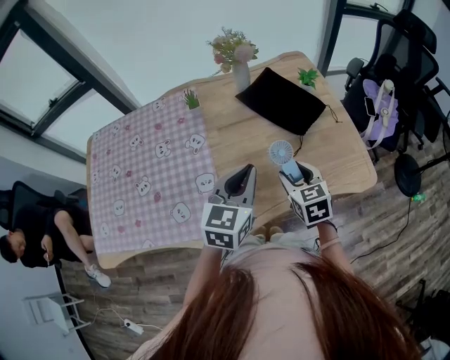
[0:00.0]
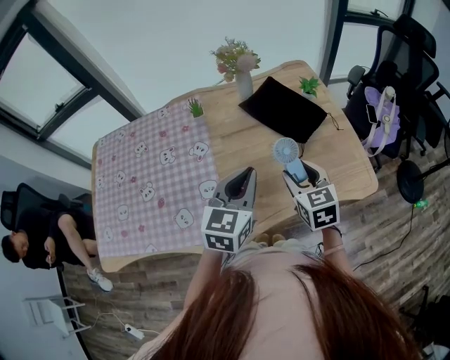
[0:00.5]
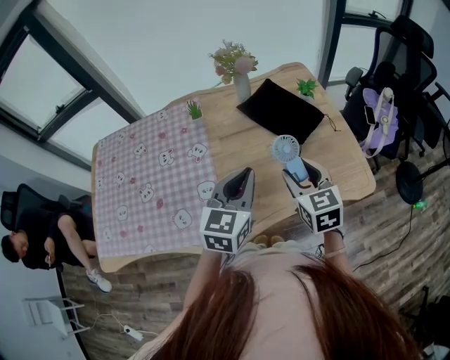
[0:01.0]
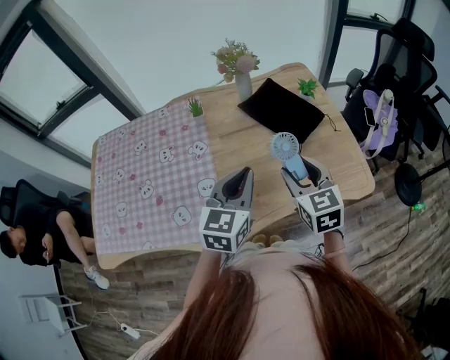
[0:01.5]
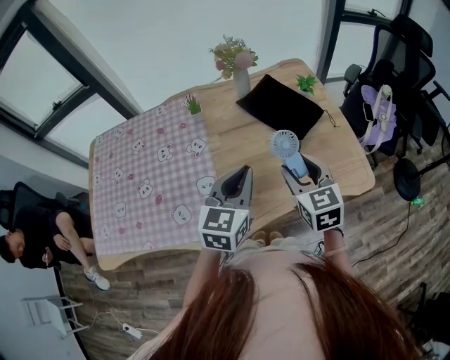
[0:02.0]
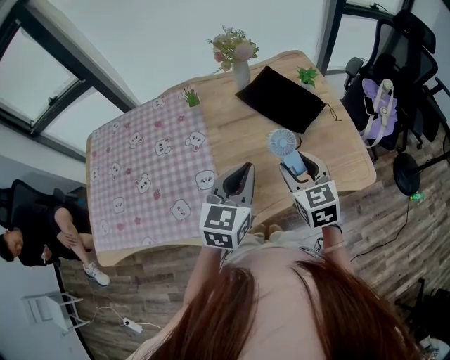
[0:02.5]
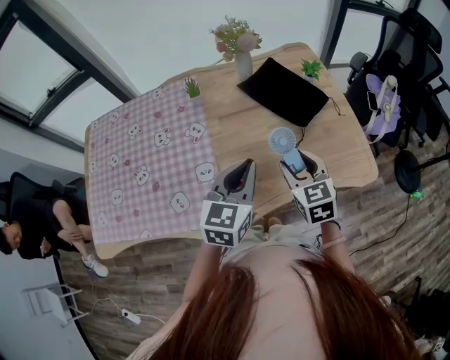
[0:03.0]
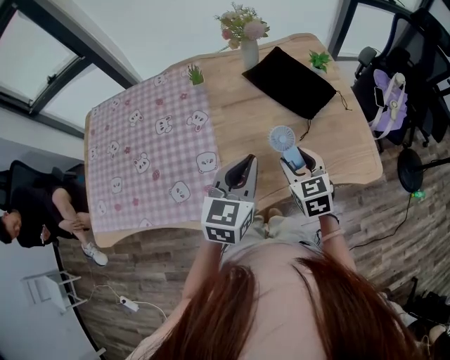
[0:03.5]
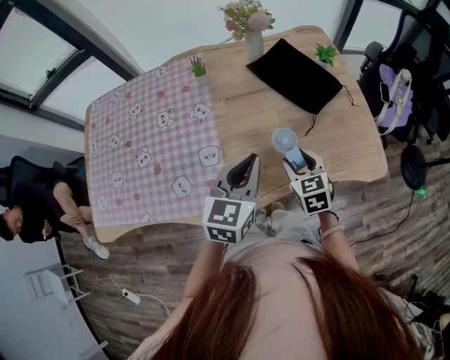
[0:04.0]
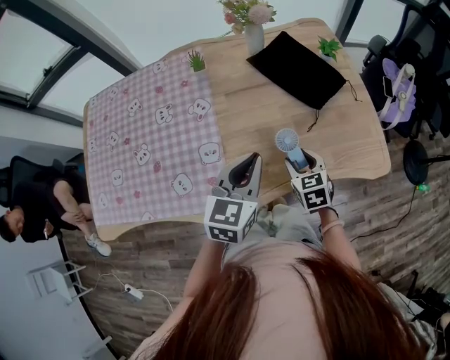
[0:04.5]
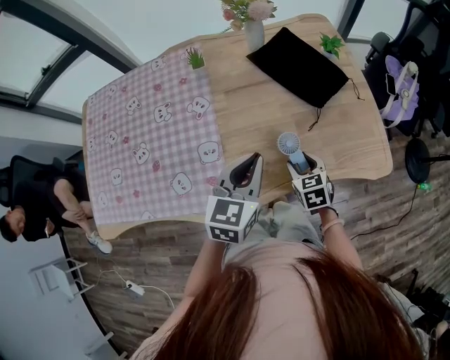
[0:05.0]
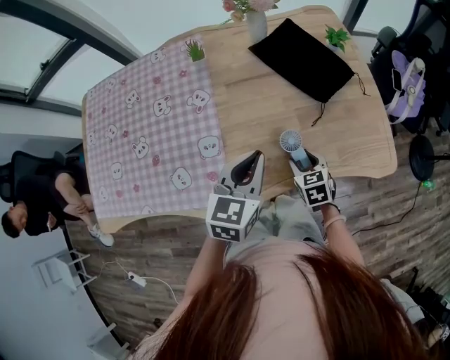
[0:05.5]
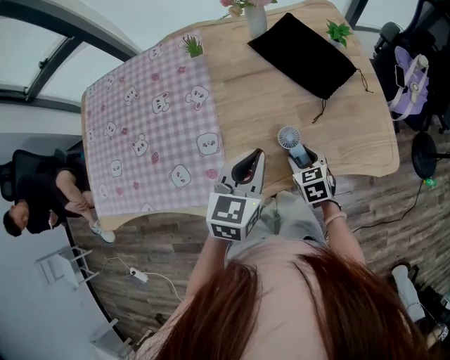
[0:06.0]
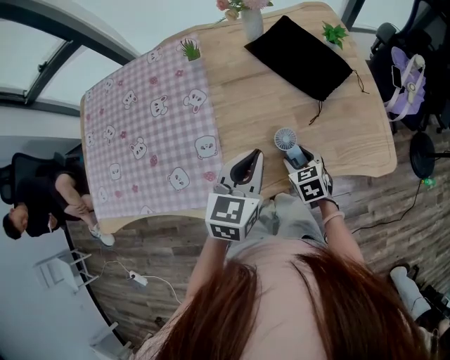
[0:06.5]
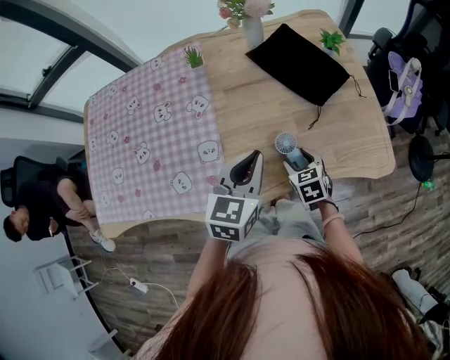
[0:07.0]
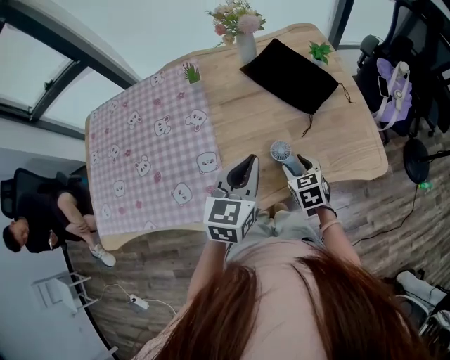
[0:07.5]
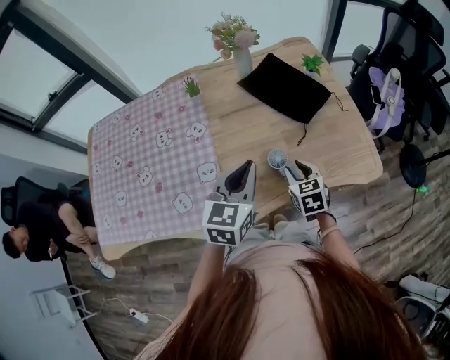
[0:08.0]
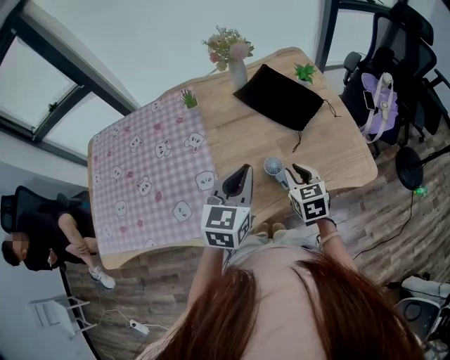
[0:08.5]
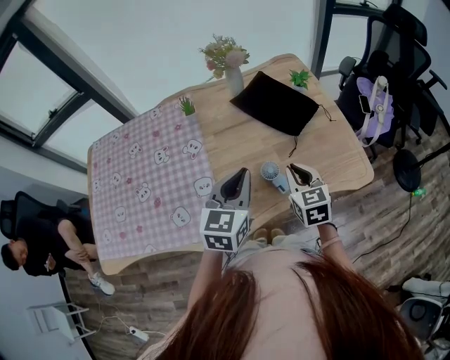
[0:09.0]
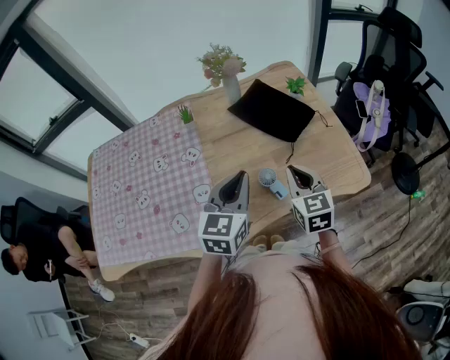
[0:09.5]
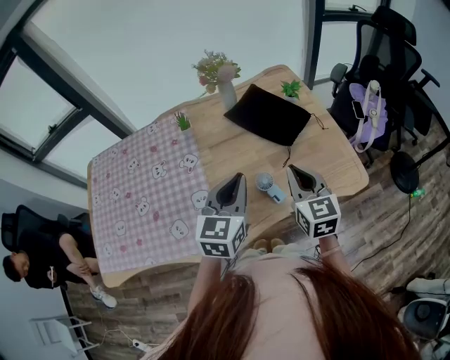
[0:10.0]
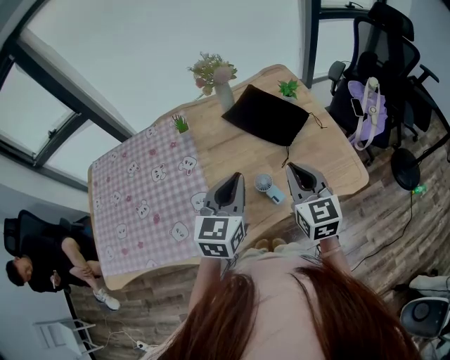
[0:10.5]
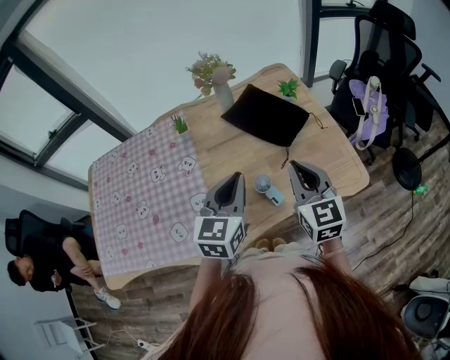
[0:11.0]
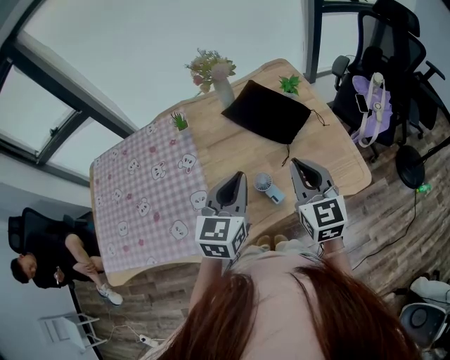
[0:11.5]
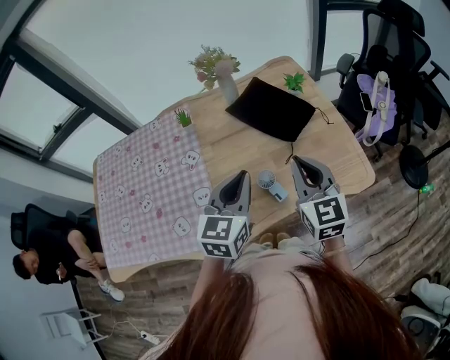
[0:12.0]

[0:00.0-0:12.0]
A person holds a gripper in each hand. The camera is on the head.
0:00.0 to 0:02.0: The right gripper heads upward, covering roughly 10 cm.
0:02.0 to 0:04.0: The right gripper is displaced downward by roughly 15 cm.
0:04.0 to 0:06.0: The right gripper moves downward, roughly 10 cm. The left gripper changes place by roughly 5 cm.
0:06.0 to 0:08.0: The left gripper goes roughly 5 cm upward; the right gripper is displaced upward by about 10 cm.
0:08.0 to 0:10.0: The left gripper changes place by some 5 cm. Meanwhile the right gripper goes about 20 cm upward, changes its angle by some 30 degrees, and closes.
0:10.0 to 0:12.0: The grippers make only small movements.

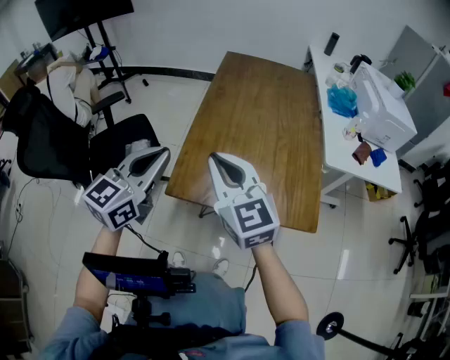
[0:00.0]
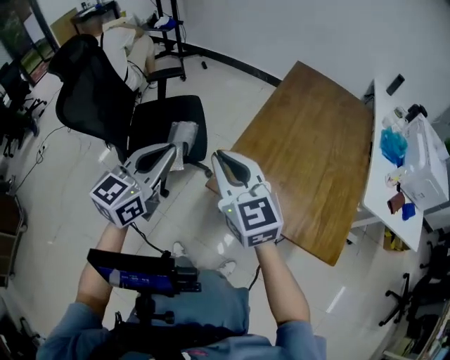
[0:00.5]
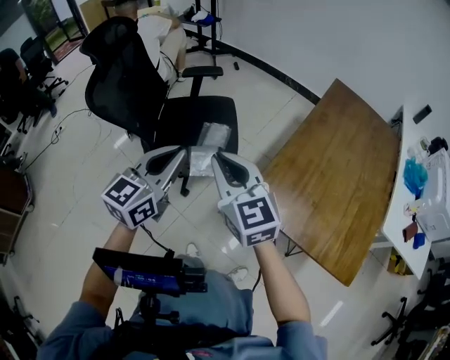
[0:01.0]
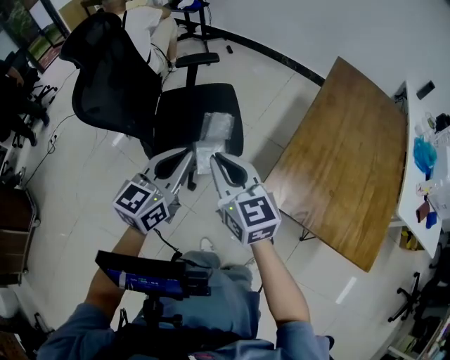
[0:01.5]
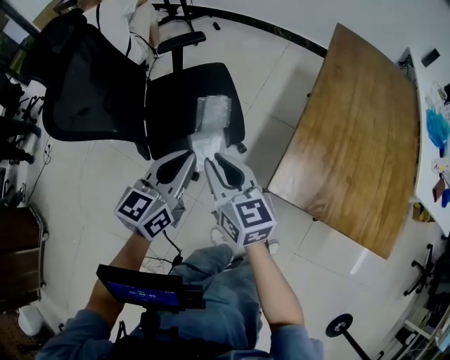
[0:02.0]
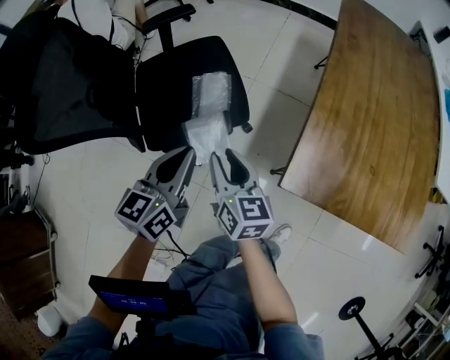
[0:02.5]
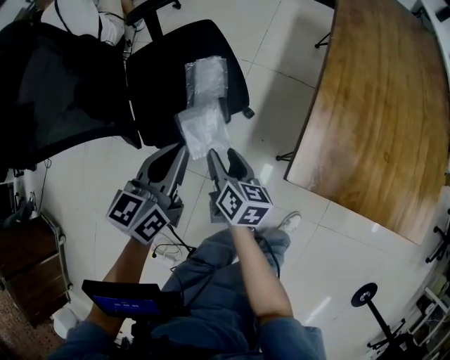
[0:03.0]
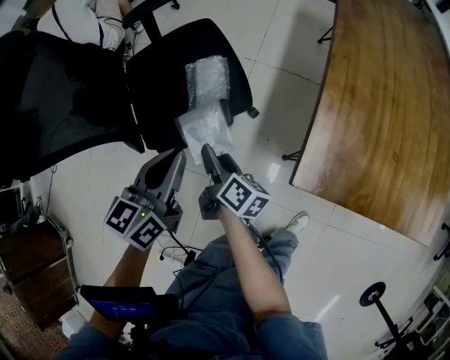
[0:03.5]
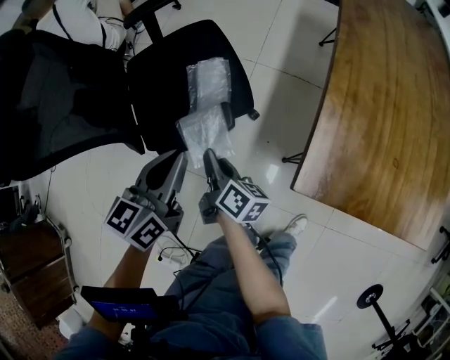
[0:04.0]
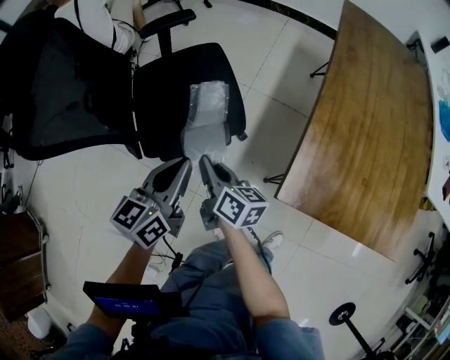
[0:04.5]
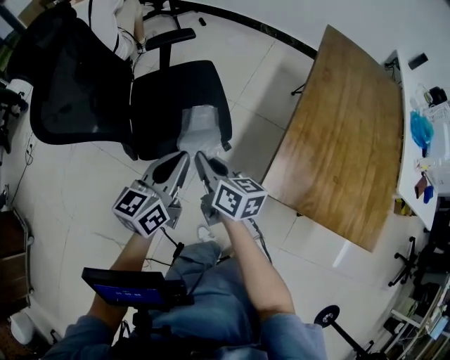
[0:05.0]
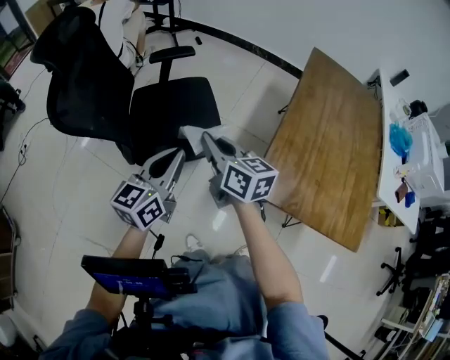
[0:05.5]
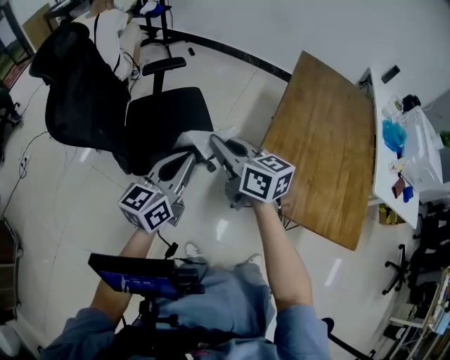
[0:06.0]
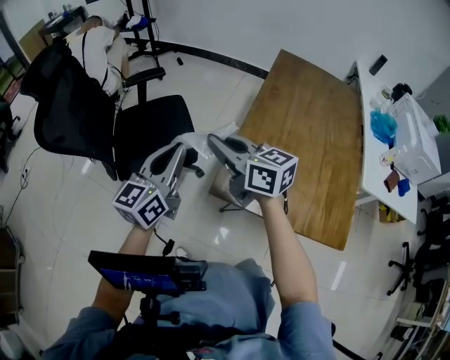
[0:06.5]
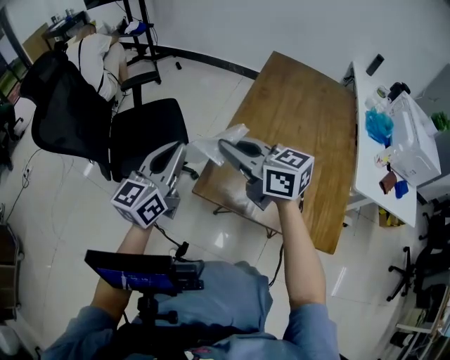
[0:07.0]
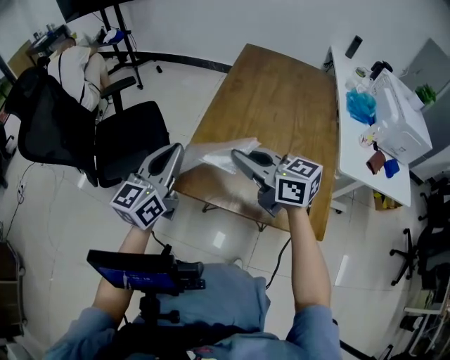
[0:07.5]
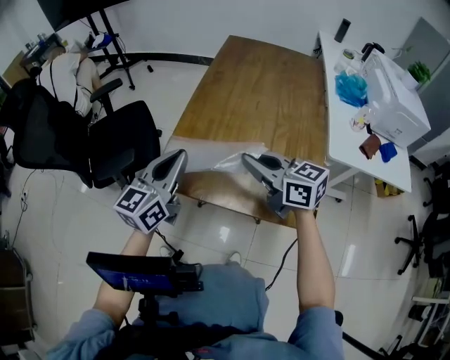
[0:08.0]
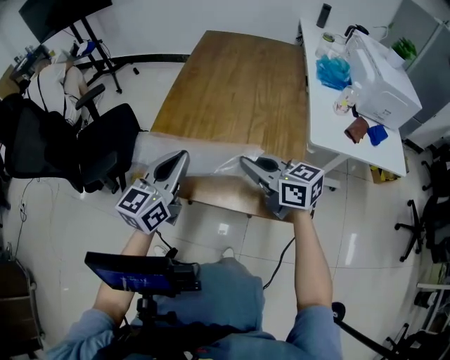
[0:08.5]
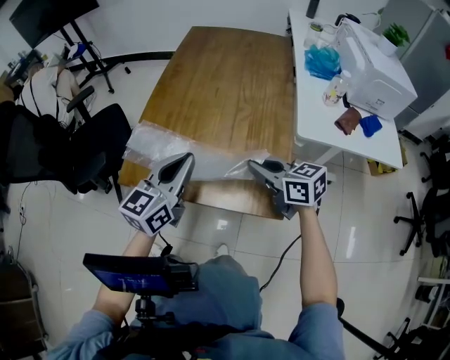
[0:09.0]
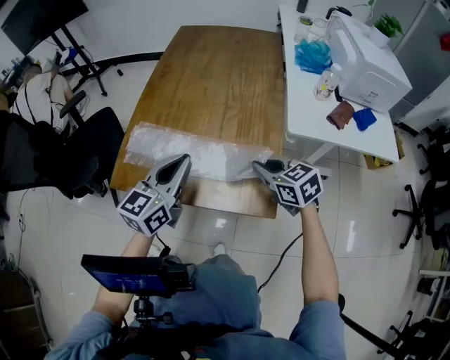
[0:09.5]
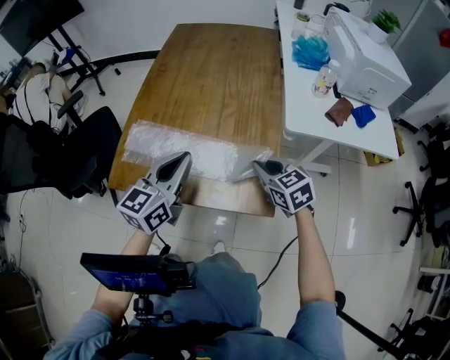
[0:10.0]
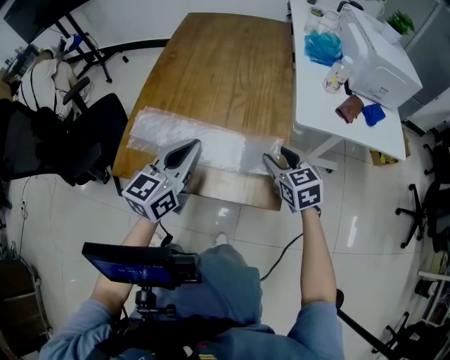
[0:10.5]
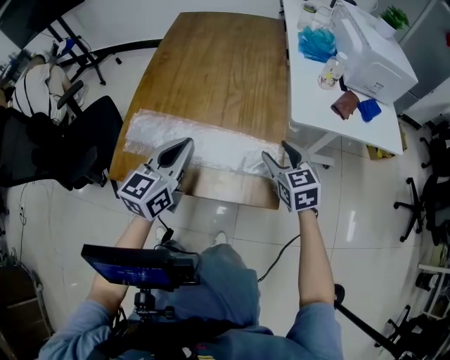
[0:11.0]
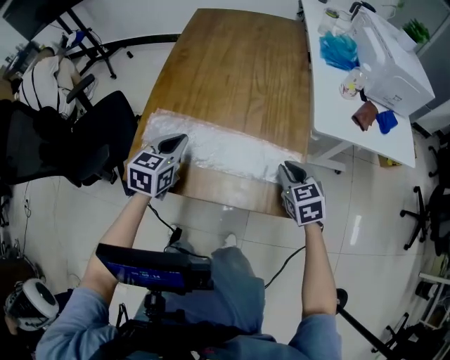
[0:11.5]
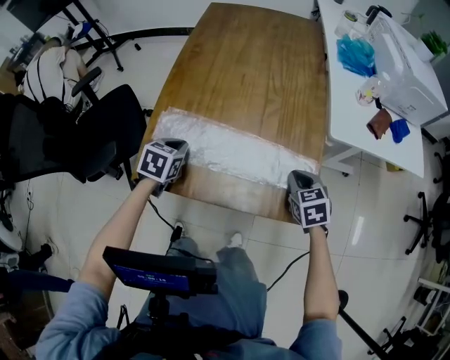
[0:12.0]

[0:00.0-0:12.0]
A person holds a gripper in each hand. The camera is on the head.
0:00.0 to 0:02.0: The grippers both shift to the left and downward by approximately 35 cm. The right gripper changes its angle by roughly 20 degrees.
0:02.0 to 0:04.0: The left gripper is displaced downward by approximately 10 cm. The right gripper moves downward, roughly 20 cm, twists some 50 degrees clockwise, seen from behind, and opens, then closes again.
0:04.0 to 0:06.0: The left gripper moves upward, roughly 15 cm. The right gripper travels upward by roughly 30 cm, and rotates around the line of its fingers by roughly 50 degrees, counterclockwise from behind.
0:06.0 to 0:08.0: The left gripper shifts approximately 30 cm to the right. The right gripper is displaced to the right and backward by some 40 cm.
0:08.0 to 0:10.0: The right gripper travels to the right and downward by roughly 25 cm, and turns by approximately 30 degrees, while the left gripper travels to the right by some 20 cm.
0:10.0 to 0:12.0: The right gripper shifts approximately 5 cm downward, turns by some 20 degrees, and opens, then closes once more. The left gripper is displaced to the left, downward and forward by about 25 cm, and angles its fingers downward, by approximately 50 degrees.

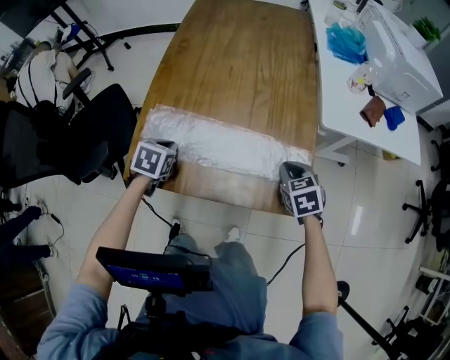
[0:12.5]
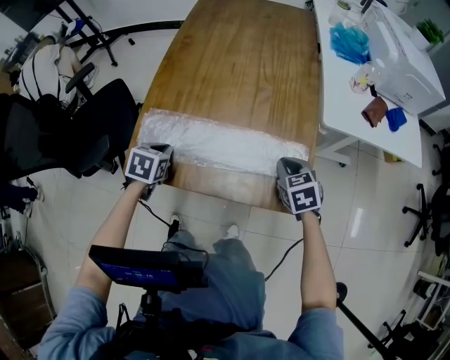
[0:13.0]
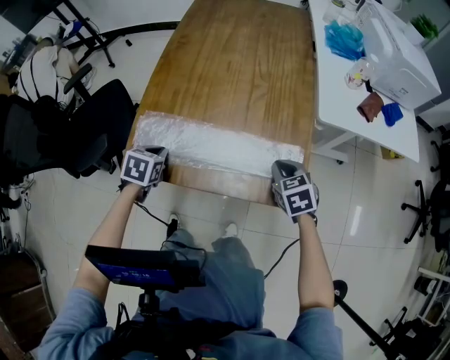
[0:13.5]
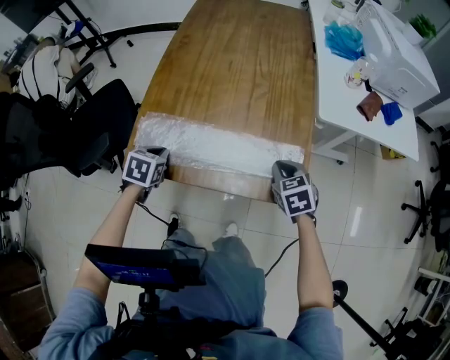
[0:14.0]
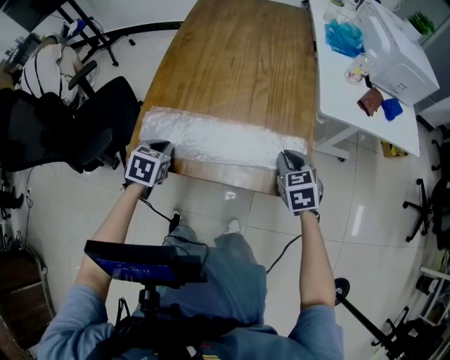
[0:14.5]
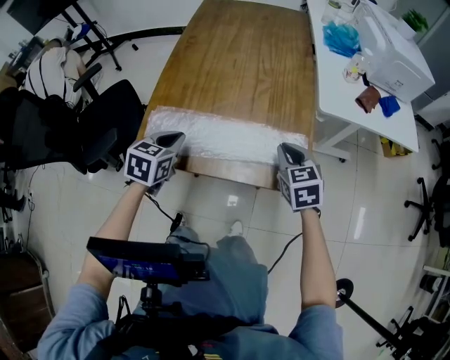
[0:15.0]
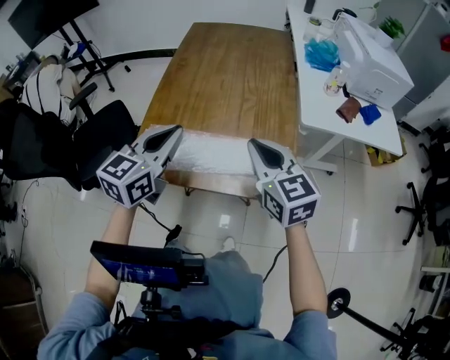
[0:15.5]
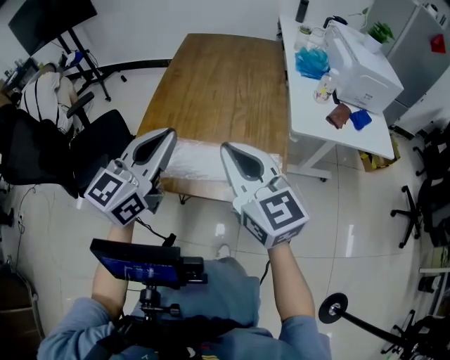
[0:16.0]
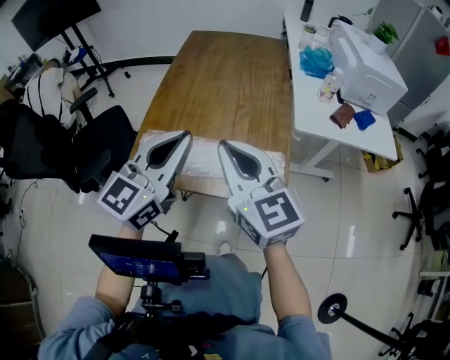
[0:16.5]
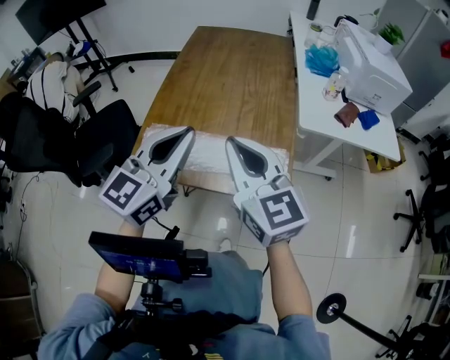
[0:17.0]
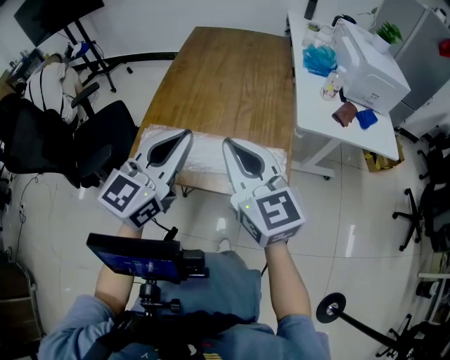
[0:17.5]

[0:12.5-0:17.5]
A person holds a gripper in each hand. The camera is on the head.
0:12.5 to 0:15.0: The left gripper is displaced upward and backward by some 10 cm; the right gripper heads upward, covering some 5 cm.
0:15.0 to 0:17.5: The left gripper heads upward and to the right, covering about 25 cm, and angles its fingers upward, by about 40 degrees. The right gripper heads upward and to the left, covering approximately 25 cm, and angles its fingers upward, by approximately 40 degrees.
